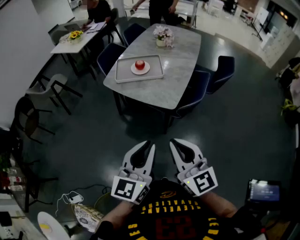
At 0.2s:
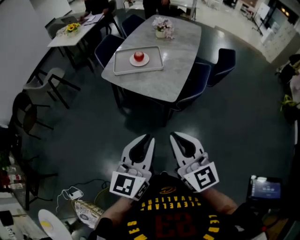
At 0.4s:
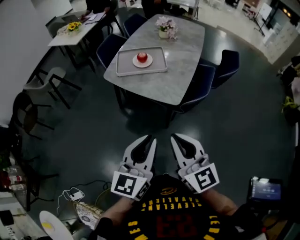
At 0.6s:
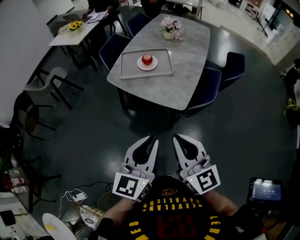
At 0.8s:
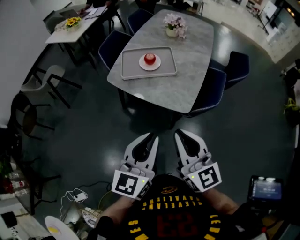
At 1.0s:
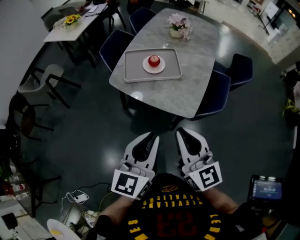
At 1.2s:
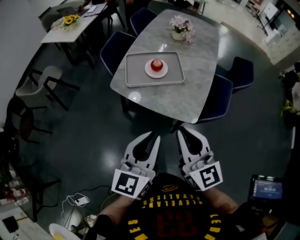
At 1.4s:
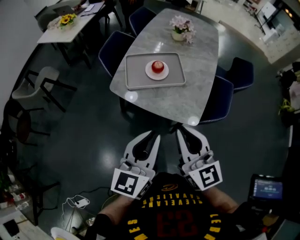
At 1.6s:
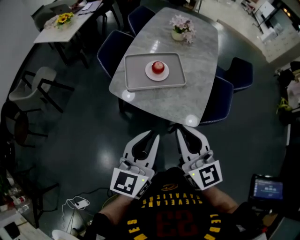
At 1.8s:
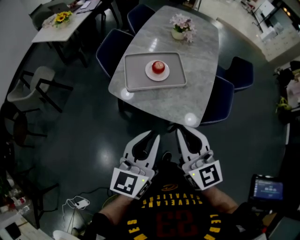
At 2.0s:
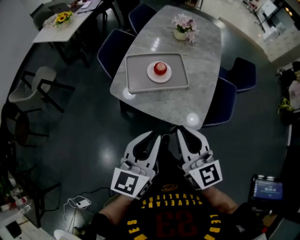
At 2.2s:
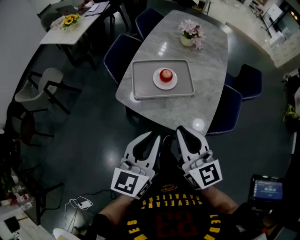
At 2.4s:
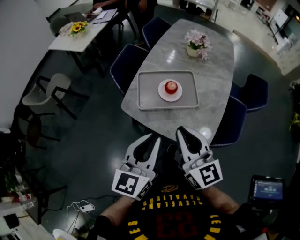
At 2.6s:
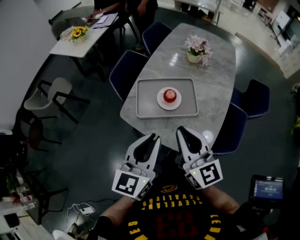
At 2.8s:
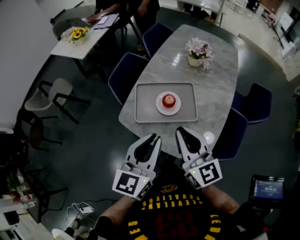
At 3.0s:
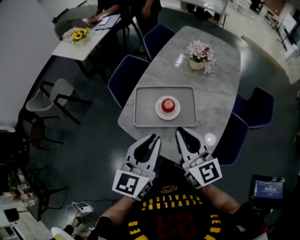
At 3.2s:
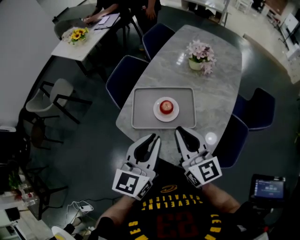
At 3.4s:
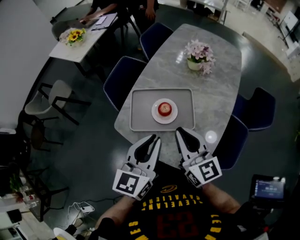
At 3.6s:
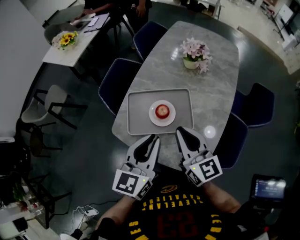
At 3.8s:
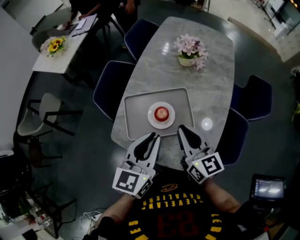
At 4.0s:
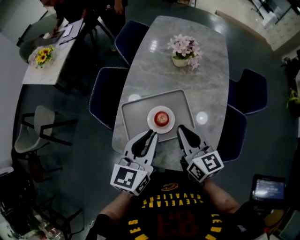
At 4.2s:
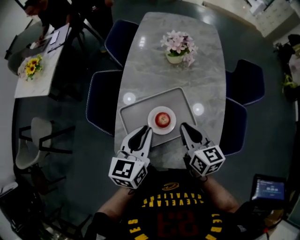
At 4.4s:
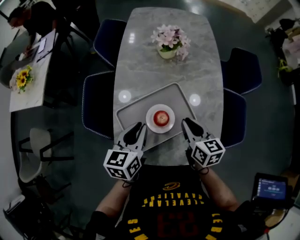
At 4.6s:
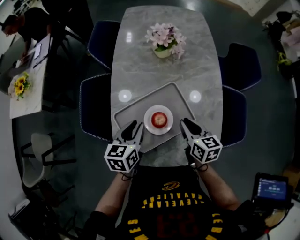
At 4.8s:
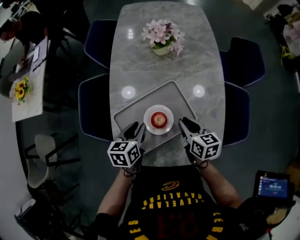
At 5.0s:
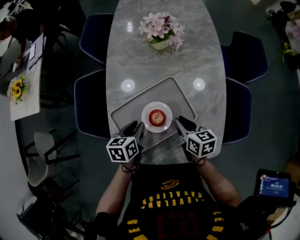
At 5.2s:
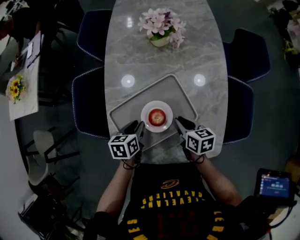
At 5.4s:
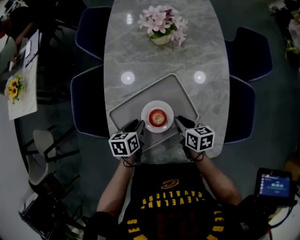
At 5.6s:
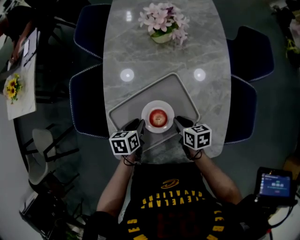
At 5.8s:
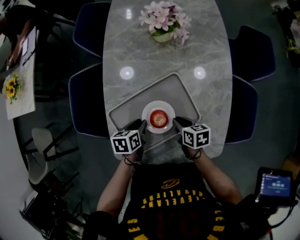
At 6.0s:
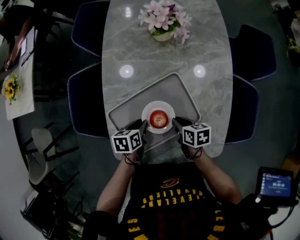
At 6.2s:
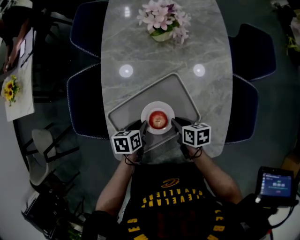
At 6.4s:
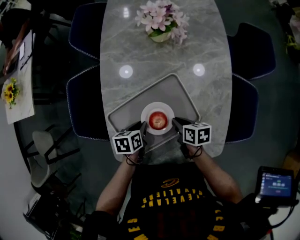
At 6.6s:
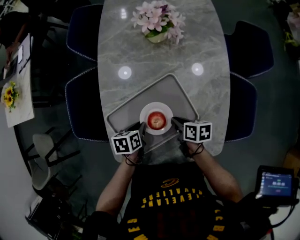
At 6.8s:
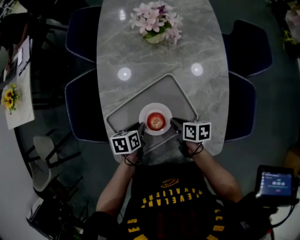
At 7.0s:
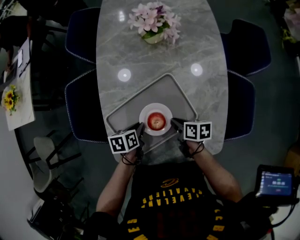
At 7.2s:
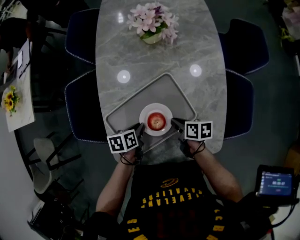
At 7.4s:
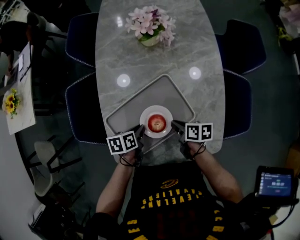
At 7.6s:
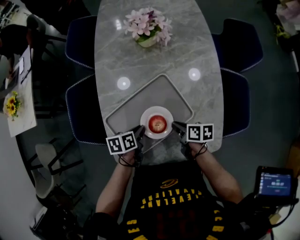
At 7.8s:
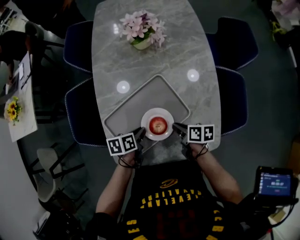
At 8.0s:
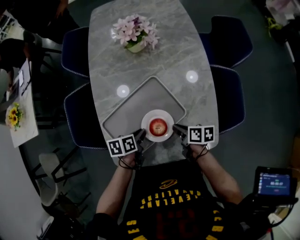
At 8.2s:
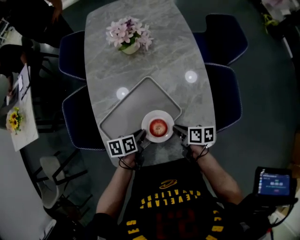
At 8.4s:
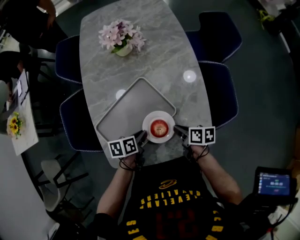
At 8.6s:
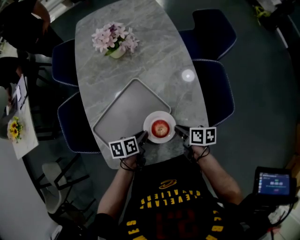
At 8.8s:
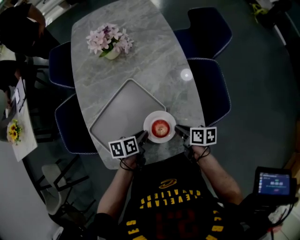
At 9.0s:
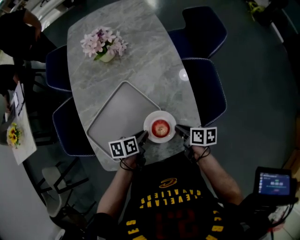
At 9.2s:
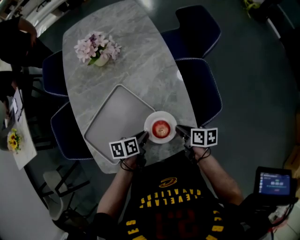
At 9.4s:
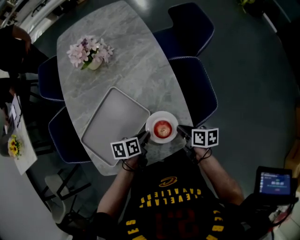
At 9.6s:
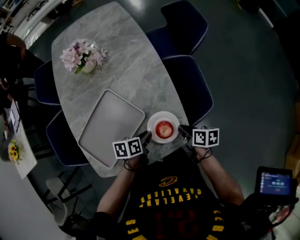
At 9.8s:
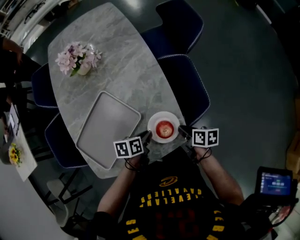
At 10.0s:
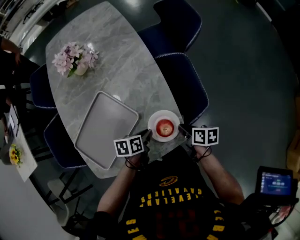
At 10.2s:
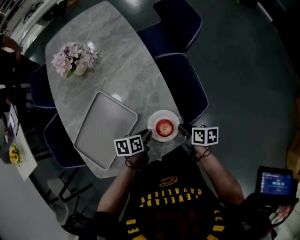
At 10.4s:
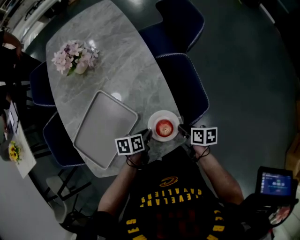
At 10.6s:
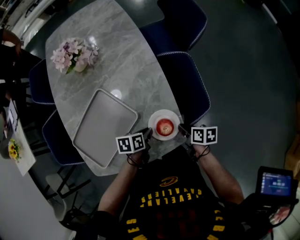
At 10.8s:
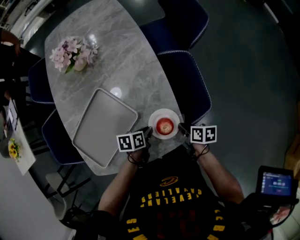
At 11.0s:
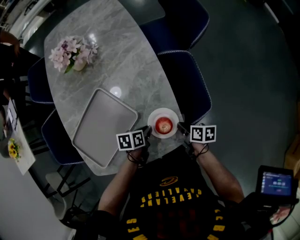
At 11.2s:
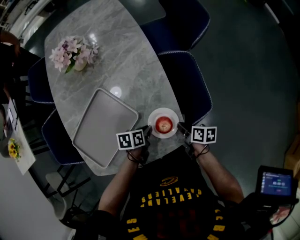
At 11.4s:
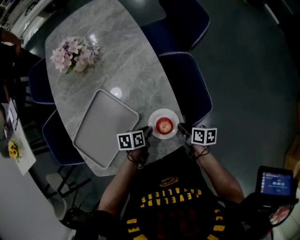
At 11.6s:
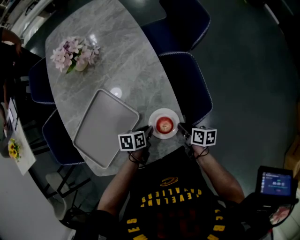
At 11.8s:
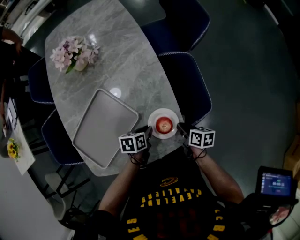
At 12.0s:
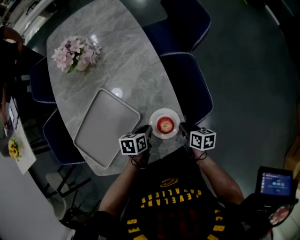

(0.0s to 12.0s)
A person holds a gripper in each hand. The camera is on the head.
0.0s - 1.6s: The two grippers go approximately 30 cm forward and to the left.
1.6s - 3.0s: The grippers both shift forward by approximately 20 cm.
3.0s - 4.4s: The right gripper shifts by approximately 20 cm, and turns by some 40 degrees. The left gripper changes place by approximately 25 cm, and rotates approximately 30 degrees.
4.4s - 6.0s: Both grippers move downward, about 20 cm. The right gripper changes its angle by roughly 30 degrees. Meanwhile the left gripper turns by roughly 40 degrees.
6.0s - 7.6s: There are only small adjustments of the grippers.
7.6s - 9.0s: Both grippers travel together to the right, some 15 cm.
9.0s - 10.4s: Both grippers move to the right, approximately 10 cm.
10.4s - 12.0s: The grippers move only a little.

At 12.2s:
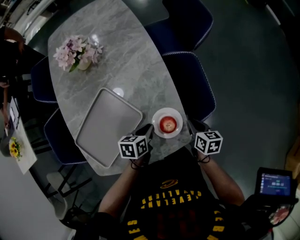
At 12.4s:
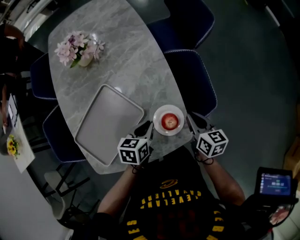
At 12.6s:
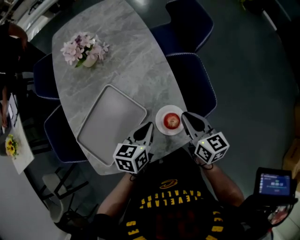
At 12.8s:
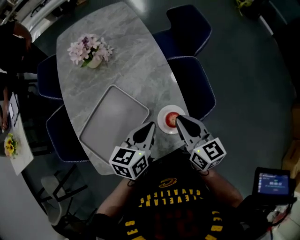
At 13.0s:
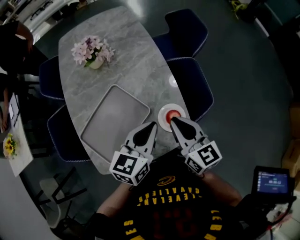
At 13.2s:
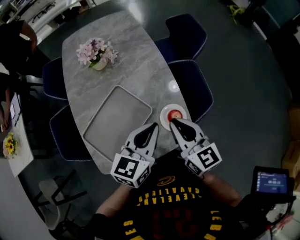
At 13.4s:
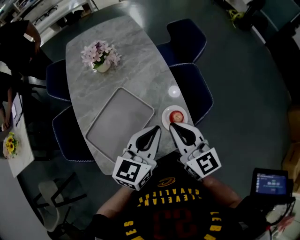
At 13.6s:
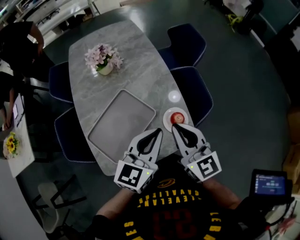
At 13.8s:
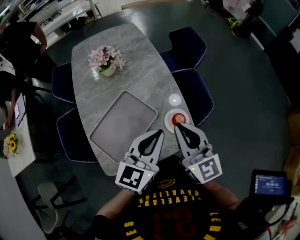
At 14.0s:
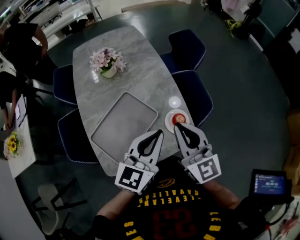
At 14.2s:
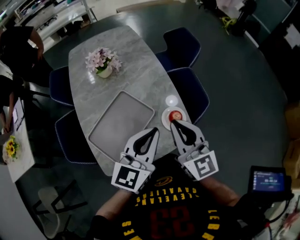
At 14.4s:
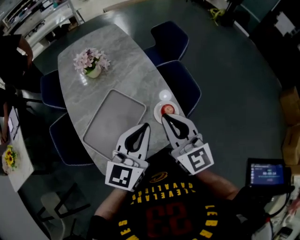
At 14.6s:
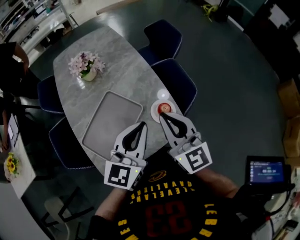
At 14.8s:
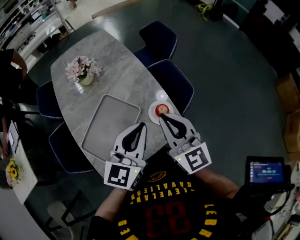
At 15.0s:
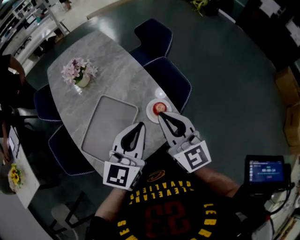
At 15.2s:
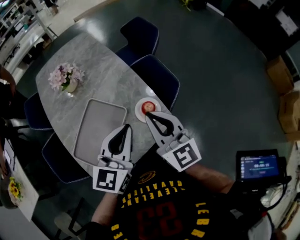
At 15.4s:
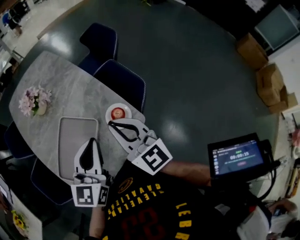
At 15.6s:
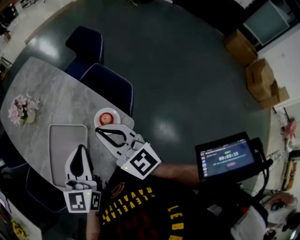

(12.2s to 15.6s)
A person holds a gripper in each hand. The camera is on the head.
12.2s - 13.8s: The right gripper goes about 40 cm upward and to the left, and tips its fingers upward by roughly 40 degrees. The left gripper heads upward, covering roughly 30 cm, and tilts its fingers some 40 degrees upward.
13.8s - 15.6s: Both grippers move forward, approximately 10 cm.

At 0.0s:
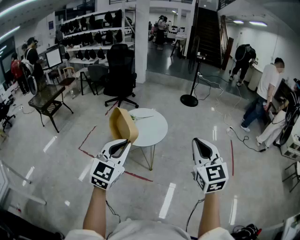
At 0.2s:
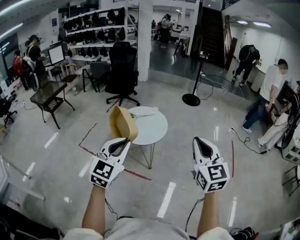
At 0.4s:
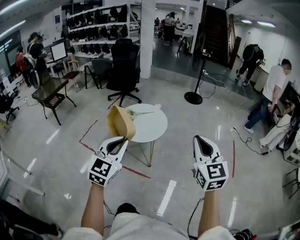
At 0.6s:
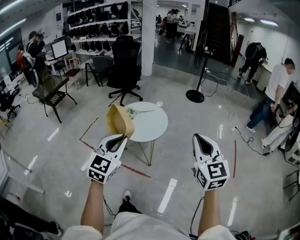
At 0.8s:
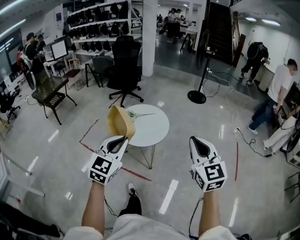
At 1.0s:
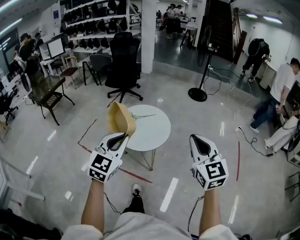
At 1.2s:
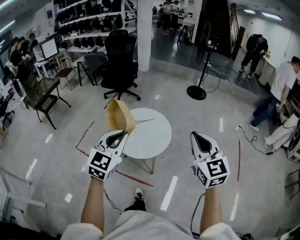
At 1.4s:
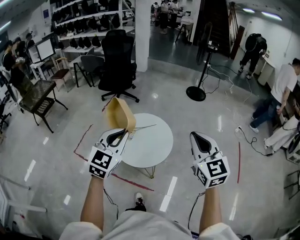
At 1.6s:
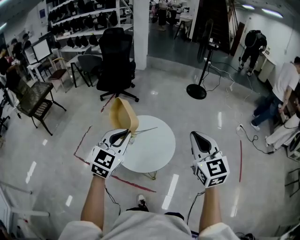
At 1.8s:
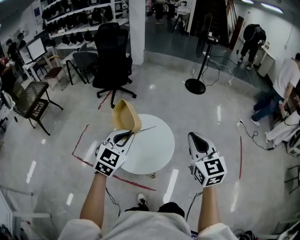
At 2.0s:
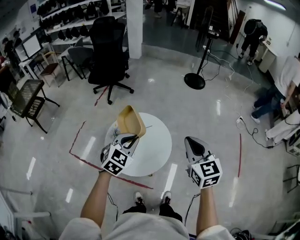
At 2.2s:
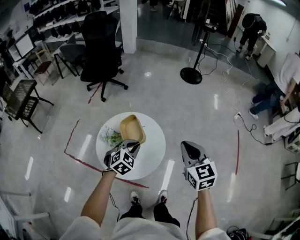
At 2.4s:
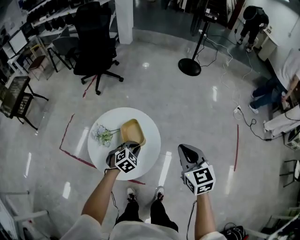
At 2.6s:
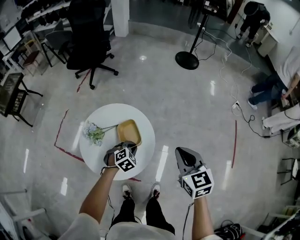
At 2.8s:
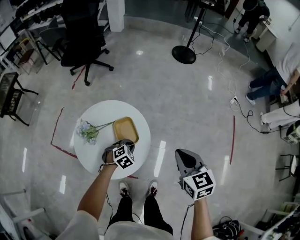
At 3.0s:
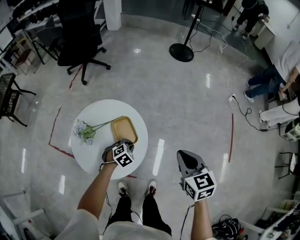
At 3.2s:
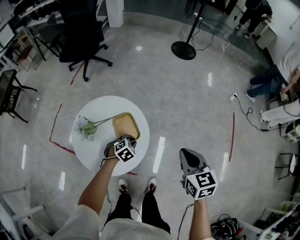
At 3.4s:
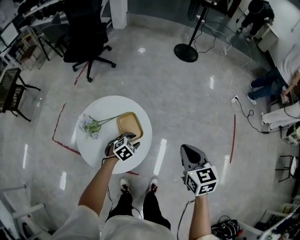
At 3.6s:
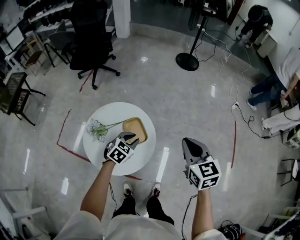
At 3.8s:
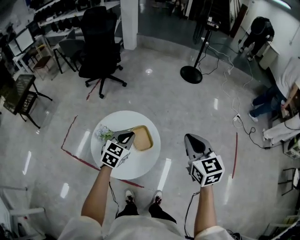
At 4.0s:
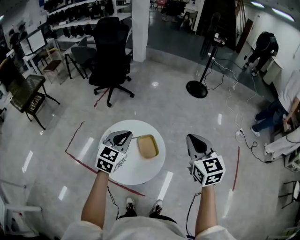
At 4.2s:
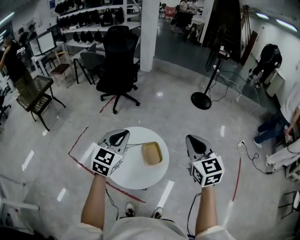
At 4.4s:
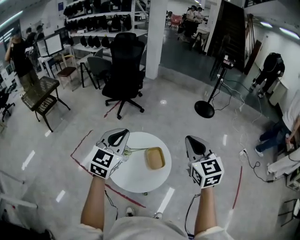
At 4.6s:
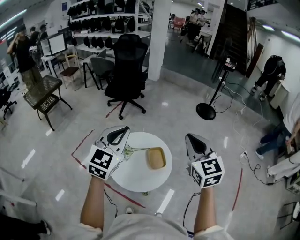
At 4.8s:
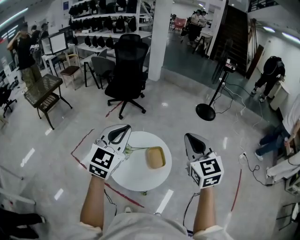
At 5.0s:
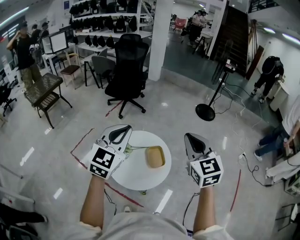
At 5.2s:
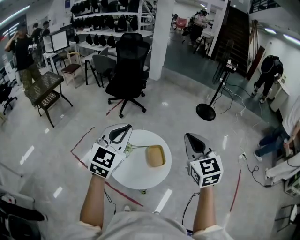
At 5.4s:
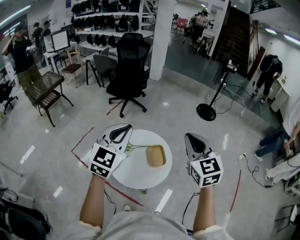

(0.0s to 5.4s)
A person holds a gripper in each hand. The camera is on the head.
0.0s - 1.4s: Both grippers move forward, about 35 cm.
1.4s - 2.8s: The right gripper moves downward and forward, some 35 cm, and rotates approximately 30 degrees. The left gripper shifts some 50 cm downward and forward, and angles its fingers downward, by about 50 degrees.
2.8s - 4.0s: The right gripper travels upward by some 20 cm. The left gripper goes some 35 cm upward, tips its fingers upward by roughly 40 degrees, and opens, then closes again.
4.0s - 5.4s: The right gripper goes roughly 15 cm to the left and upward. Meanwhile the left gripper heads upward, to the left and backward, covering some 20 cm.

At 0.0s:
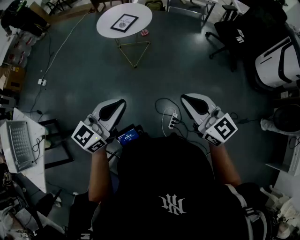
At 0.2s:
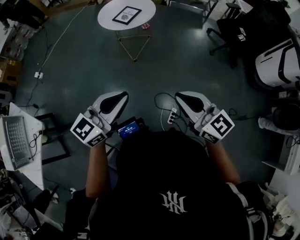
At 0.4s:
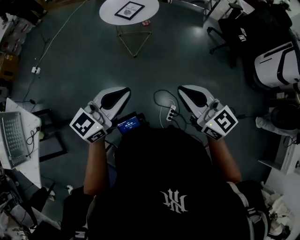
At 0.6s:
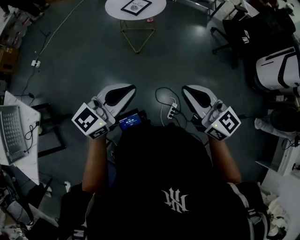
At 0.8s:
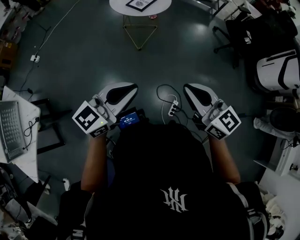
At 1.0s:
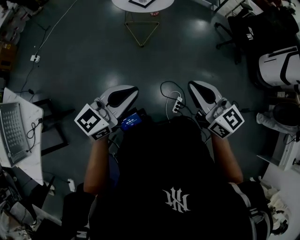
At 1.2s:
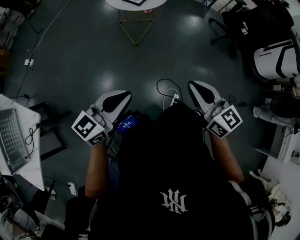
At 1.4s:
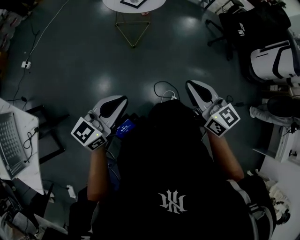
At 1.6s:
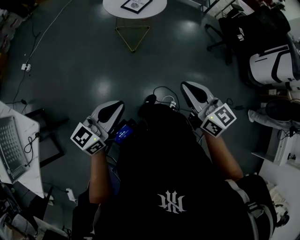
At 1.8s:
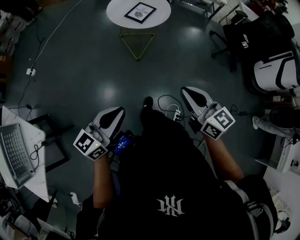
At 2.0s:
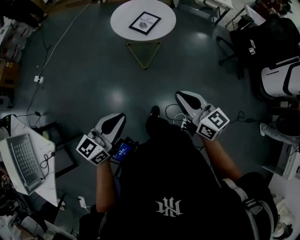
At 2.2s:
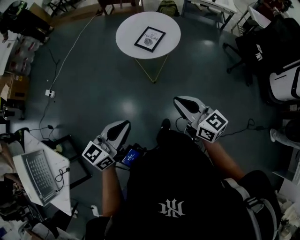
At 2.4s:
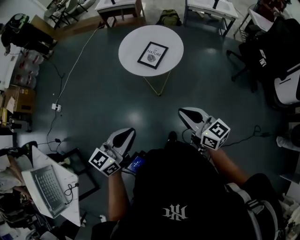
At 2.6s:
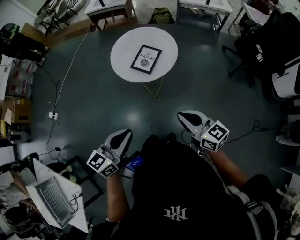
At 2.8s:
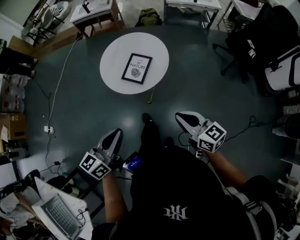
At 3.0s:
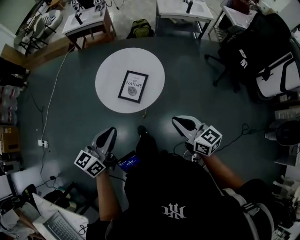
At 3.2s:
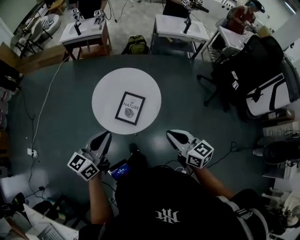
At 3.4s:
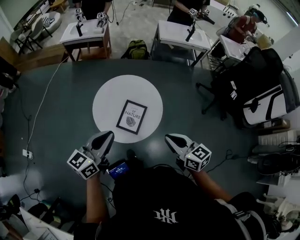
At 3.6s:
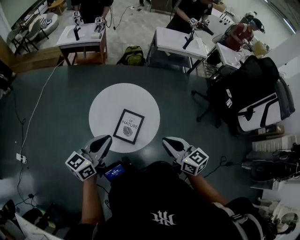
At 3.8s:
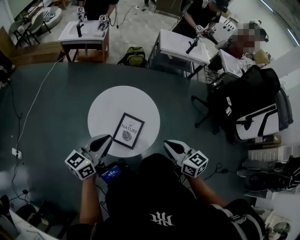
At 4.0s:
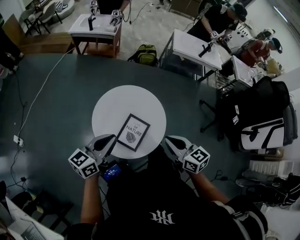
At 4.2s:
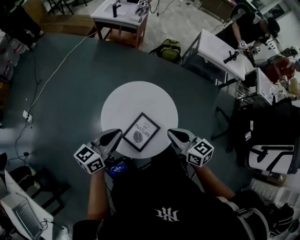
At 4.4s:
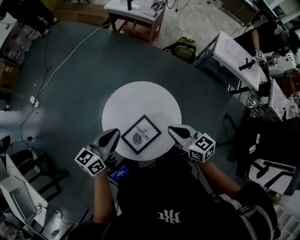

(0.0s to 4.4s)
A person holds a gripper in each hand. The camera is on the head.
0.0s - 1.4s: The left gripper goes about 20 cm to the left and downward. Meanwhile the right gripper moves to the left, about 15 cm.
1.4s - 3.0s: The two grippers travel together, forward, some 50 cm.
3.0s - 4.4s: The left gripper shifts by roughly 30 cm, and changes its angle by some 30 degrees. Meanwhile the right gripper moves roughly 40 cm, and turns by approximately 30 degrees.
